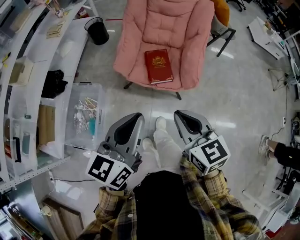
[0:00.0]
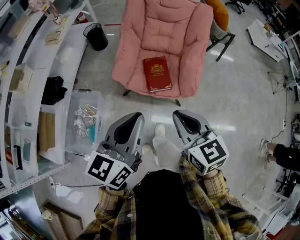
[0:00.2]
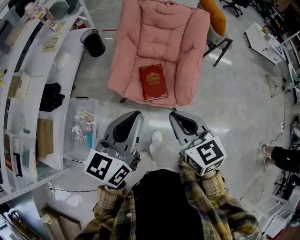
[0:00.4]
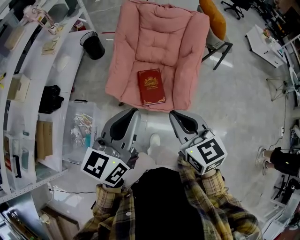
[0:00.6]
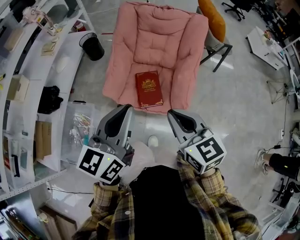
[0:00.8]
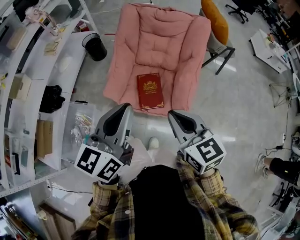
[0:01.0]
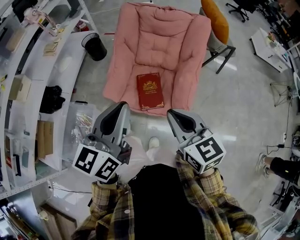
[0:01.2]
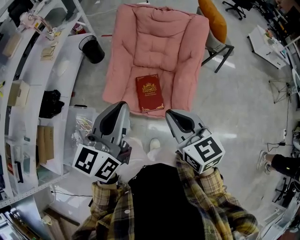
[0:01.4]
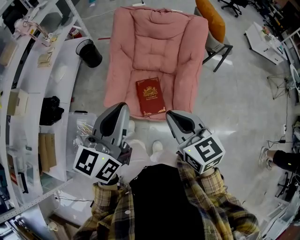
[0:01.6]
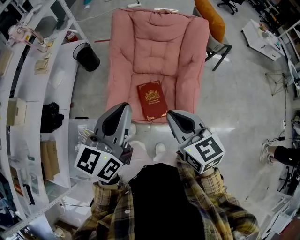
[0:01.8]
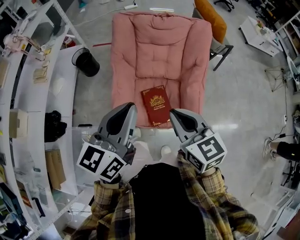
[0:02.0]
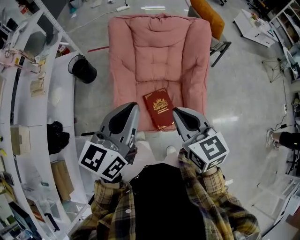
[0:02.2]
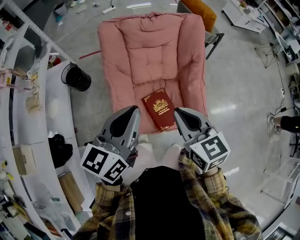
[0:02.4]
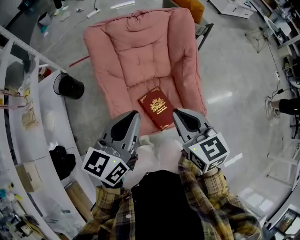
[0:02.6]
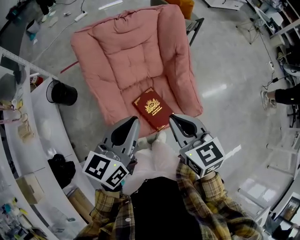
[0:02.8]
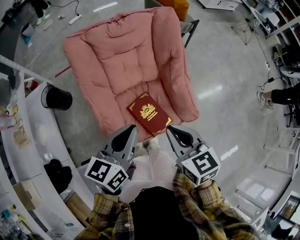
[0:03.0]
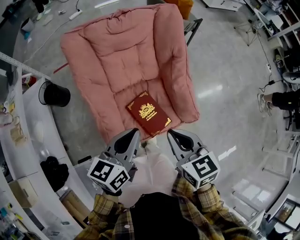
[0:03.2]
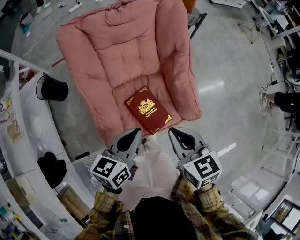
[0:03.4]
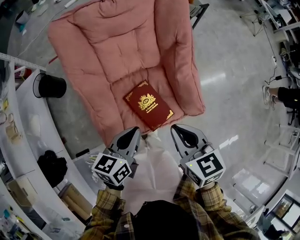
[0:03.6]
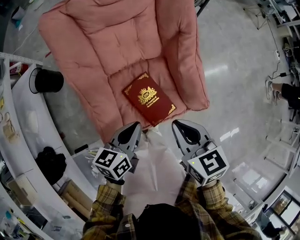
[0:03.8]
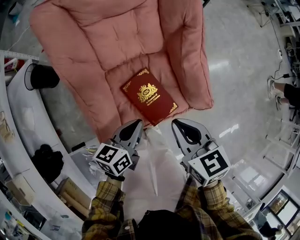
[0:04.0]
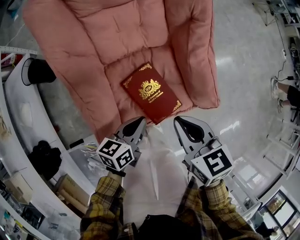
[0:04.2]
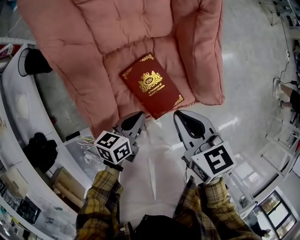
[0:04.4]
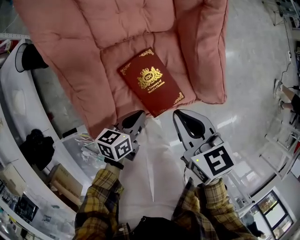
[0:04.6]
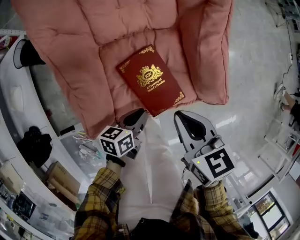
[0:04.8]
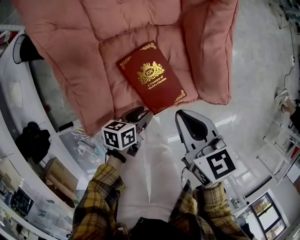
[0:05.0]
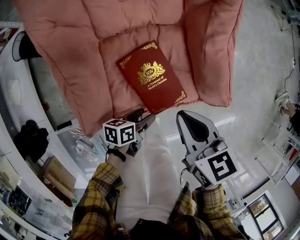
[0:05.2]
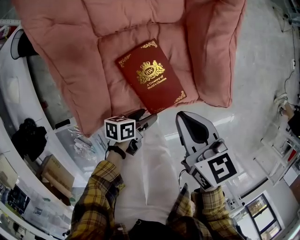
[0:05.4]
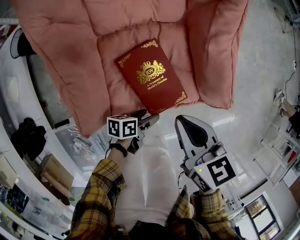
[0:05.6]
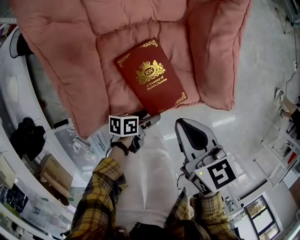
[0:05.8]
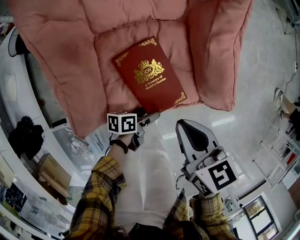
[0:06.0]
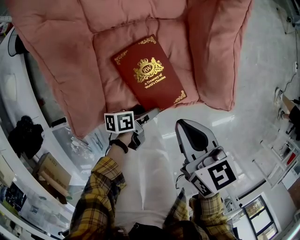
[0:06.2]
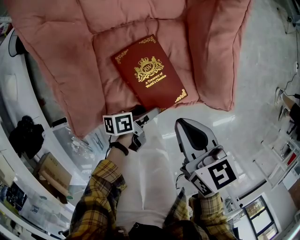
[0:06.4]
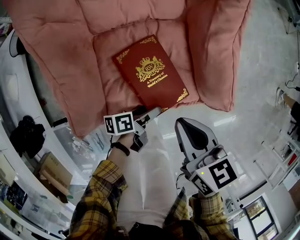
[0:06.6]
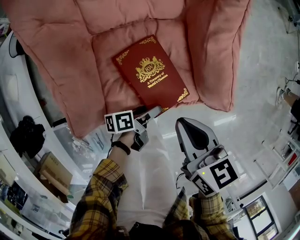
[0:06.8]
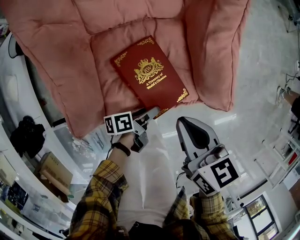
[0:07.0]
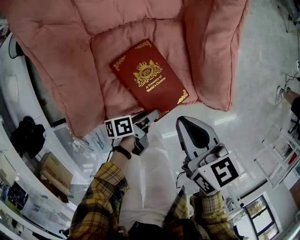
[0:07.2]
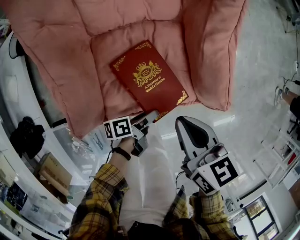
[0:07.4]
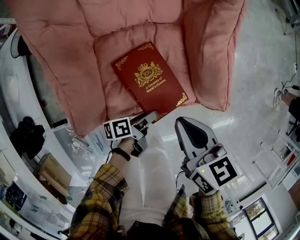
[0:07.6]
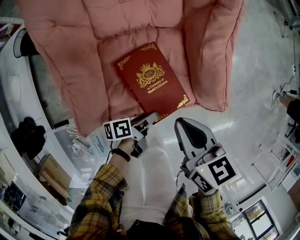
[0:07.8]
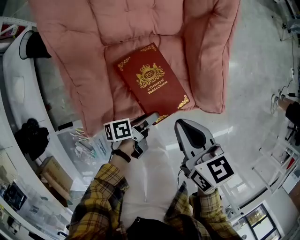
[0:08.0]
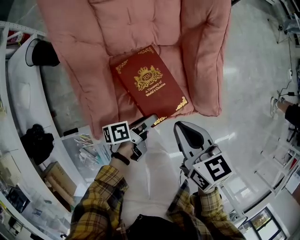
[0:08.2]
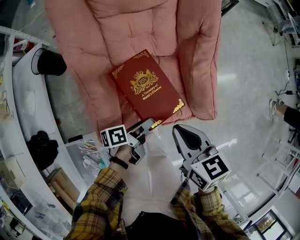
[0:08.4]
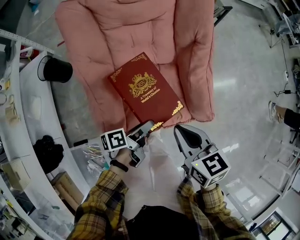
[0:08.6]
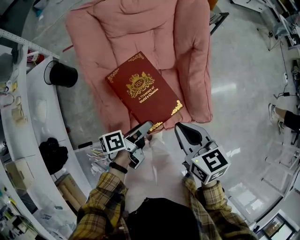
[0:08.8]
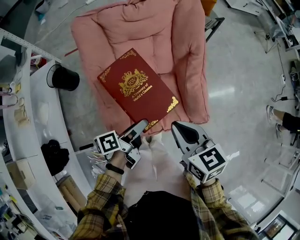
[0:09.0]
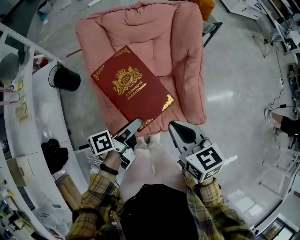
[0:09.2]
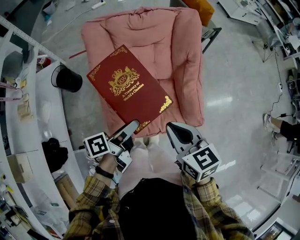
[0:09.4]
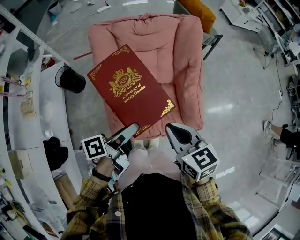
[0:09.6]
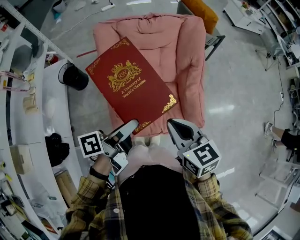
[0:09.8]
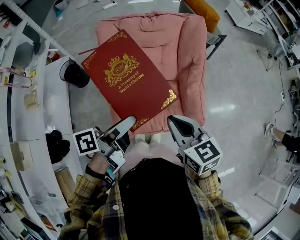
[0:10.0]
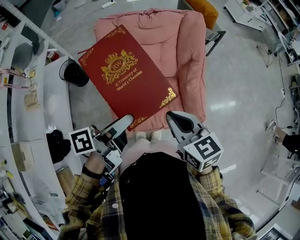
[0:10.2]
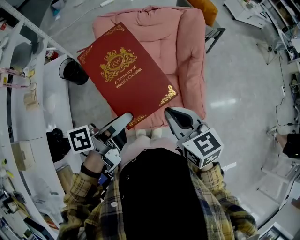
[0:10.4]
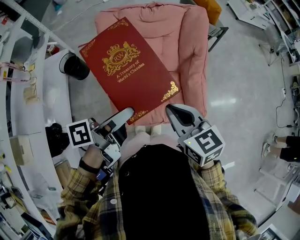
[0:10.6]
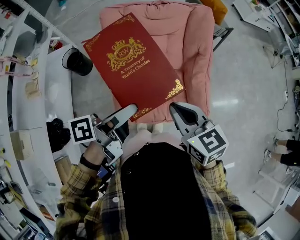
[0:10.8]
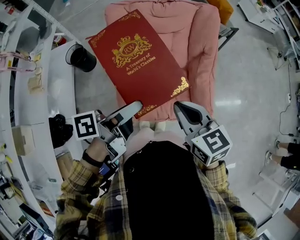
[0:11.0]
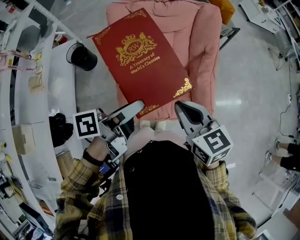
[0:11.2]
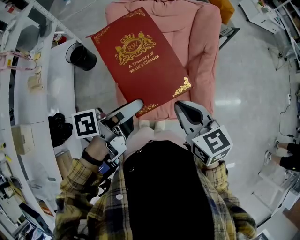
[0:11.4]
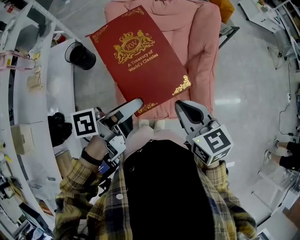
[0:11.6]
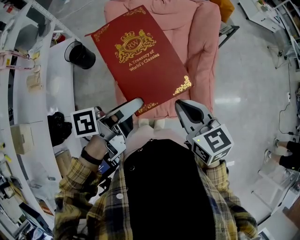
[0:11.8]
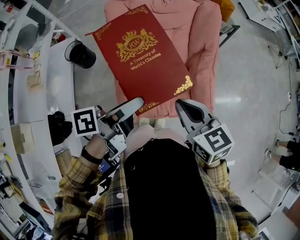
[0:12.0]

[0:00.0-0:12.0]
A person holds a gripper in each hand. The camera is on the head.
0:00.0 to 0:01.6: The grippers both shift forward by some 20 cm.
0:01.6 to 0:03.0: The left gripper changes place by some 25 cm, and turns by about 40 degrees; the right gripper ends up roughly 20 cm from where it was, and changes its angle by some 30 degrees.
0:03.0 to 0:04.4: The left gripper travels downward by some 35 cm, and rotates roughly 30 degrees, while the right gripper travels downward by approximately 20 cm.
0:04.4 to 0:06.0: The left gripper moves downward and to the right, some 20 cm, changes its angle by about 30 degrees, and opens. The right gripper travels downward by some 5 cm.
0:06.0 to 0:07.6: The left gripper rotates roughly 20 degrees.
0:07.6 to 0:09.0: The two grippers go approximately 25 cm upward. The left gripper turns by some 20 degrees.
0:09.0 to 0:10.4: The right gripper travels upward by roughly 10 cm, while the left gripper goes some 20 cm upward.
0:10.4 to 0:12.0: The grippers move only a little.

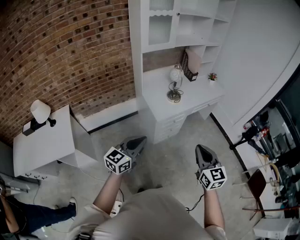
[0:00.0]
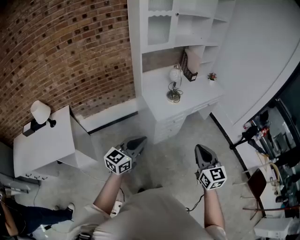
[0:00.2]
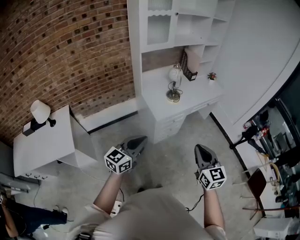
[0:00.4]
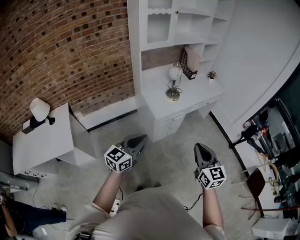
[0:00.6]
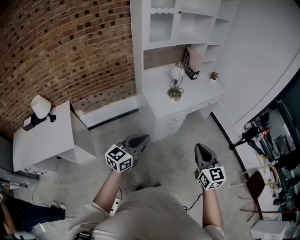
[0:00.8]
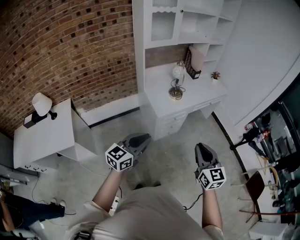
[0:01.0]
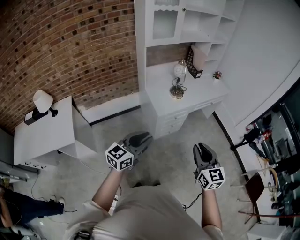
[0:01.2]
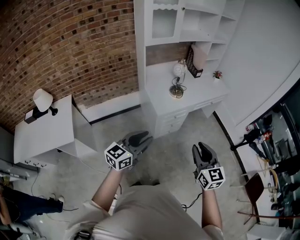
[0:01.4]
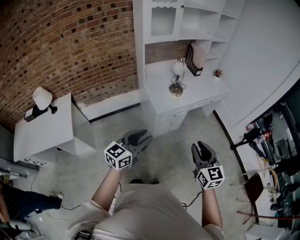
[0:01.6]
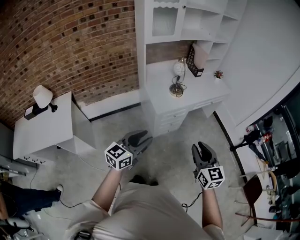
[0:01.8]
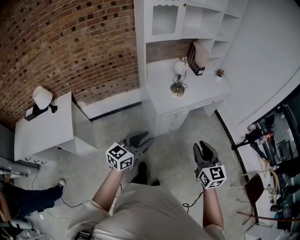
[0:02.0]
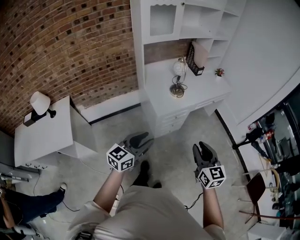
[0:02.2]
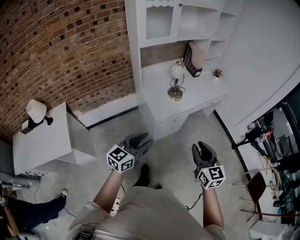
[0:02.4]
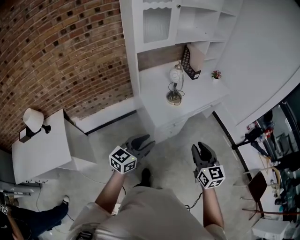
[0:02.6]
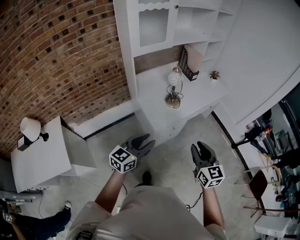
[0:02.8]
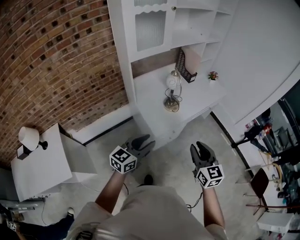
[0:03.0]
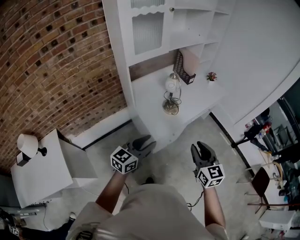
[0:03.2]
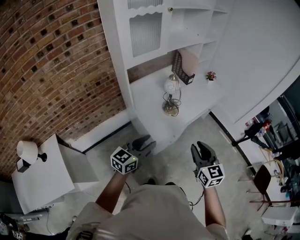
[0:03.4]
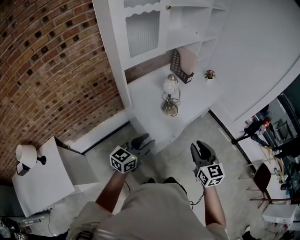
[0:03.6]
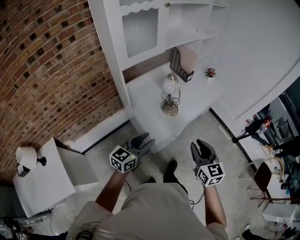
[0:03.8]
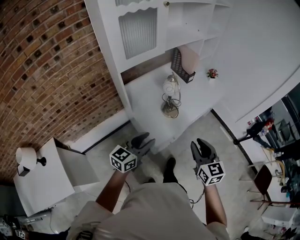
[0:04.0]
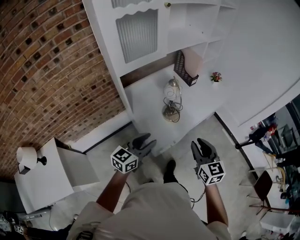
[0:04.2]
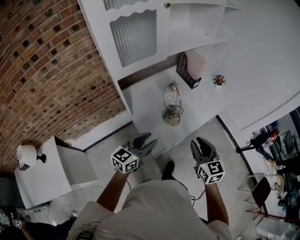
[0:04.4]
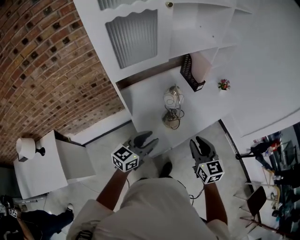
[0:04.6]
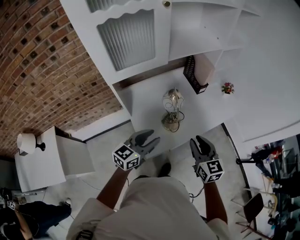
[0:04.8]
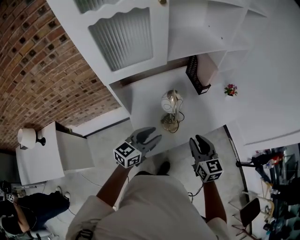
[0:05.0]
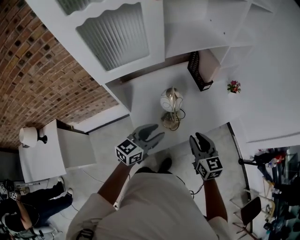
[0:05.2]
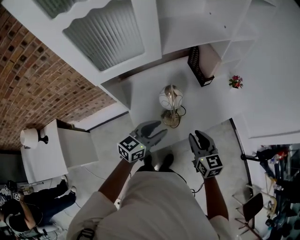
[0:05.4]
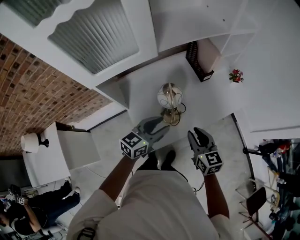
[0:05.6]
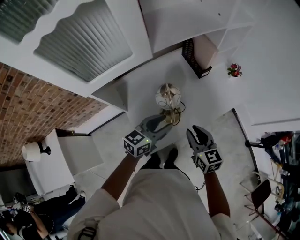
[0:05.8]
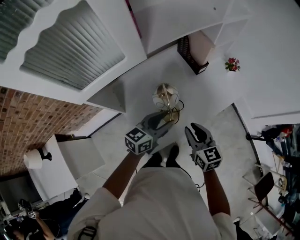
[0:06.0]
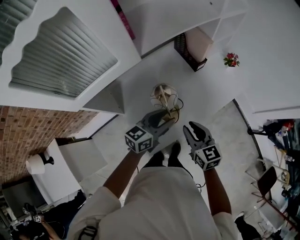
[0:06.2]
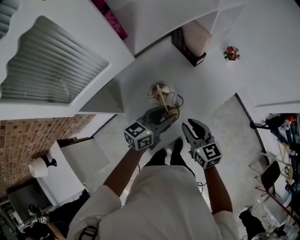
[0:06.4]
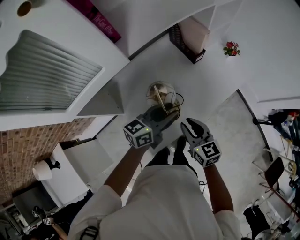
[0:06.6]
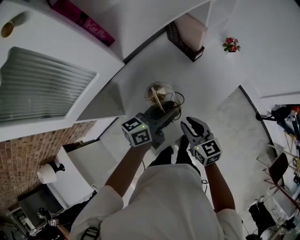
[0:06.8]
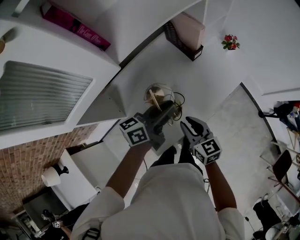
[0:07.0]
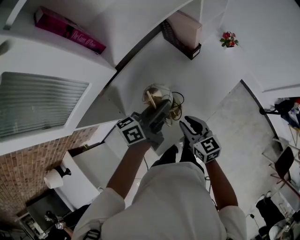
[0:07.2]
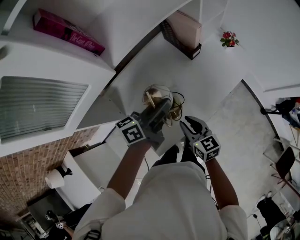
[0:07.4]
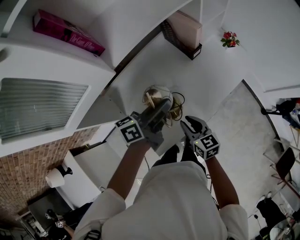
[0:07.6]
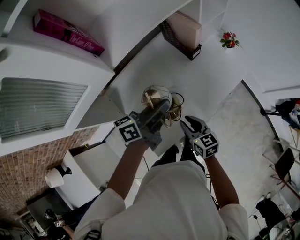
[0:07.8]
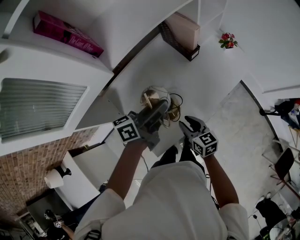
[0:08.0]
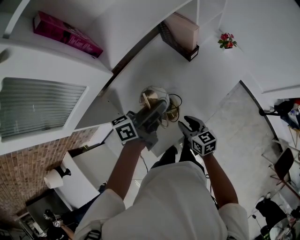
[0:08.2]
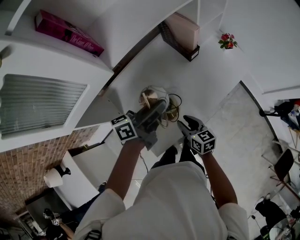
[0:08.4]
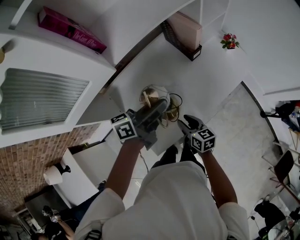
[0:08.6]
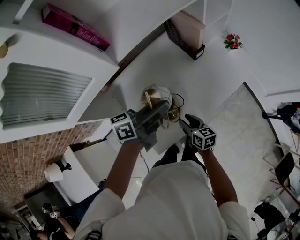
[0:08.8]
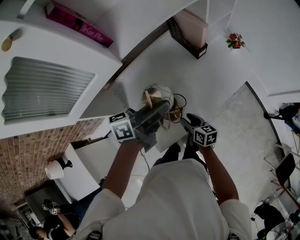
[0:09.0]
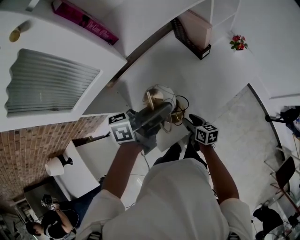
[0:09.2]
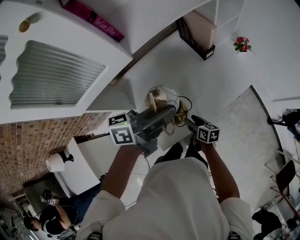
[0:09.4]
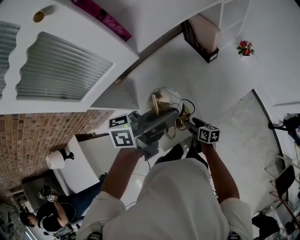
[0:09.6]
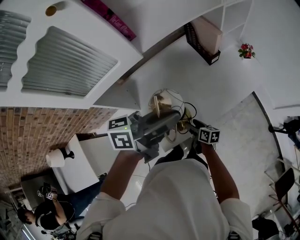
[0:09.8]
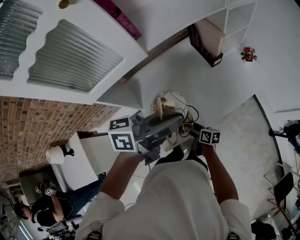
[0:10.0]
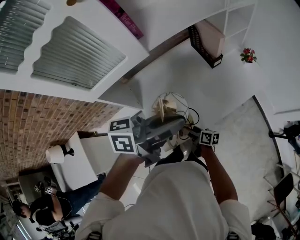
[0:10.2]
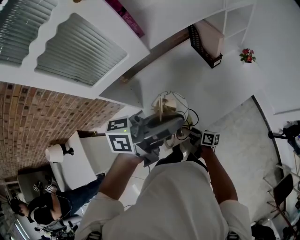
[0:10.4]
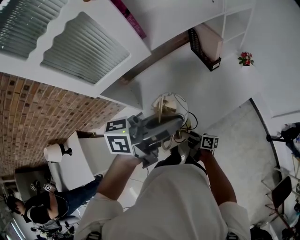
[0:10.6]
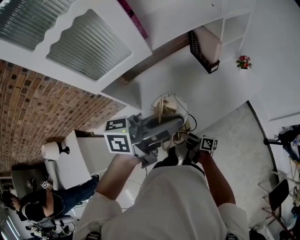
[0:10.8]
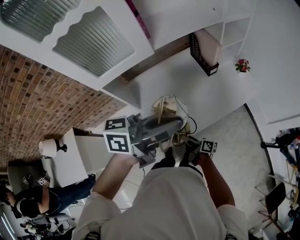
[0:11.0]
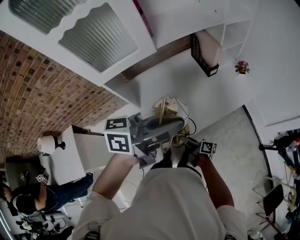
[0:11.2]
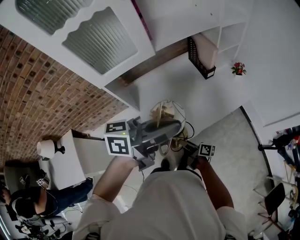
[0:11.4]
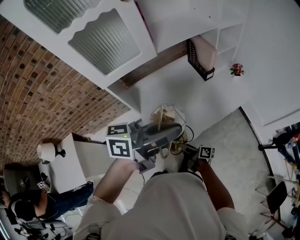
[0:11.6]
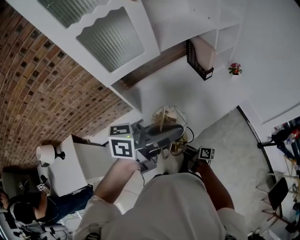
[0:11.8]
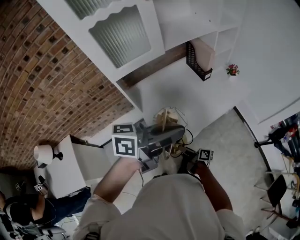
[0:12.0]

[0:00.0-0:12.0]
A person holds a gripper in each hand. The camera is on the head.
0:00.0 to 0:01.6: The right gripper opens its fingers. Meanwhile the left gripper travels to the right by some 5 cm, and opens its fingers.
0:01.6 to 0:03.0: The right gripper heads forward and to the left, covering approximately 20 cm, while the left gripper shifts about 20 cm forward.
0:03.0 to 0:04.4: Both grippers travel together forward, roughly 20 cm.
0:04.4 to 0:06.0: The left gripper heads forward and to the right, covering about 25 cm, while the right gripper travels forward and downward by approximately 20 cm.
0:06.0 to 0:07.6: The left gripper heads forward, covering some 10 cm, swivels roughly 30 degrees, and closes up; the right gripper shifts roughly 10 cm downward.
0:07.6 to 0:09.0: The left gripper ends up about 5 cm from where it was. The right gripper shifts approximately 10 cm downward.
0:09.0 to 0:10.4: The right gripper moves backward, some 10 cm, and swivels some 30 degrees. The left gripper shifts approximately 15 cm upward and backward.
0:10.4 to 0:12.0: The two grippers go some 15 cm backward. The right gripper closes.
